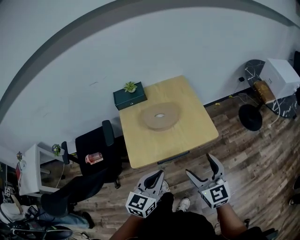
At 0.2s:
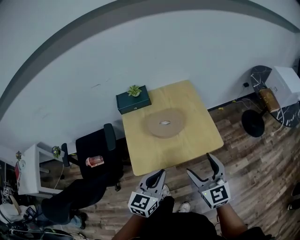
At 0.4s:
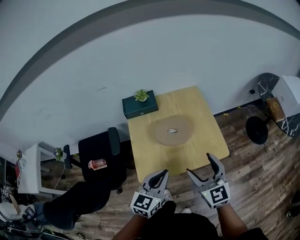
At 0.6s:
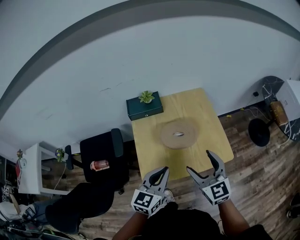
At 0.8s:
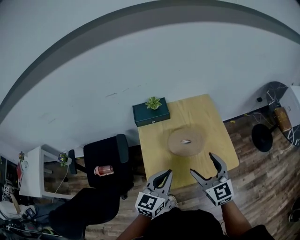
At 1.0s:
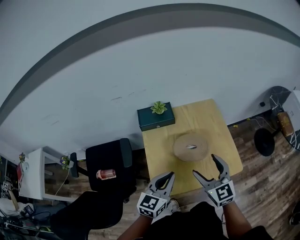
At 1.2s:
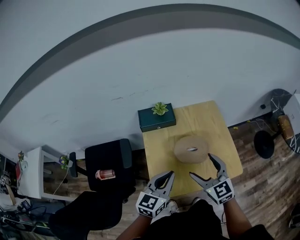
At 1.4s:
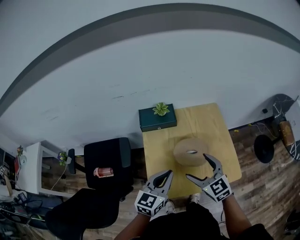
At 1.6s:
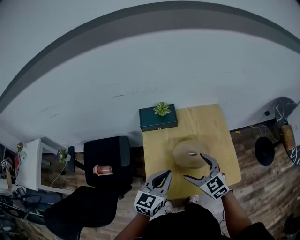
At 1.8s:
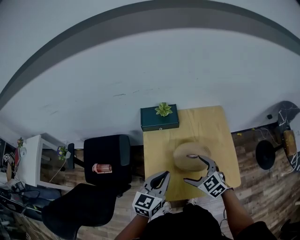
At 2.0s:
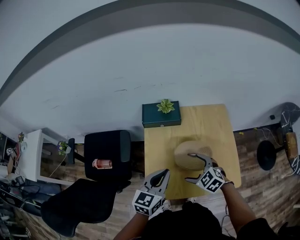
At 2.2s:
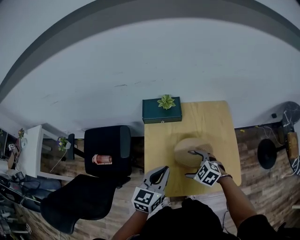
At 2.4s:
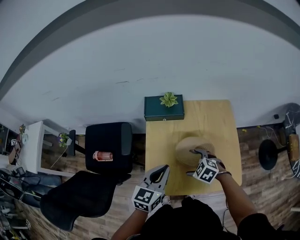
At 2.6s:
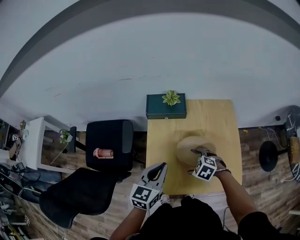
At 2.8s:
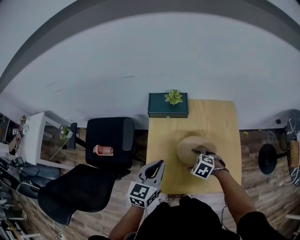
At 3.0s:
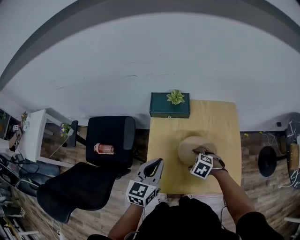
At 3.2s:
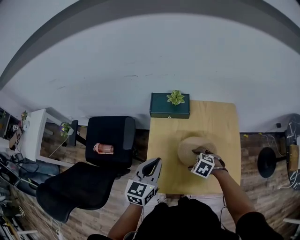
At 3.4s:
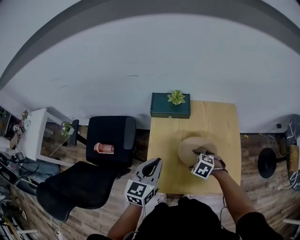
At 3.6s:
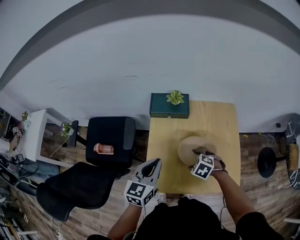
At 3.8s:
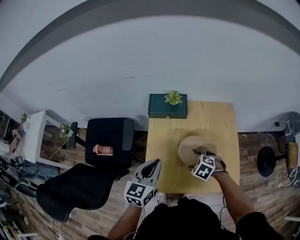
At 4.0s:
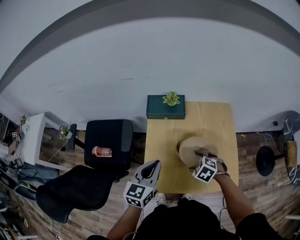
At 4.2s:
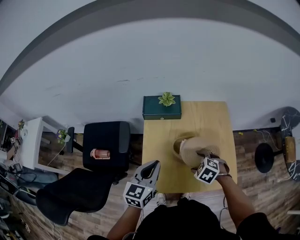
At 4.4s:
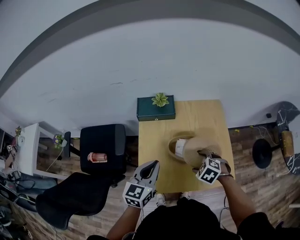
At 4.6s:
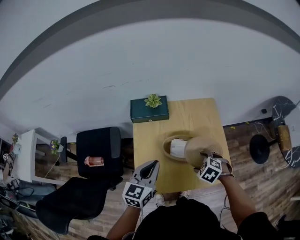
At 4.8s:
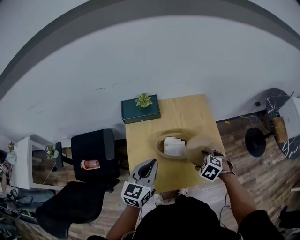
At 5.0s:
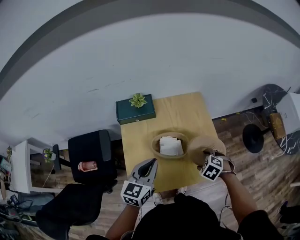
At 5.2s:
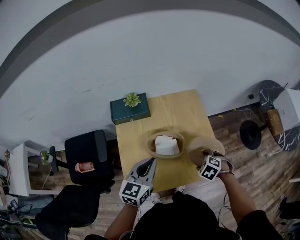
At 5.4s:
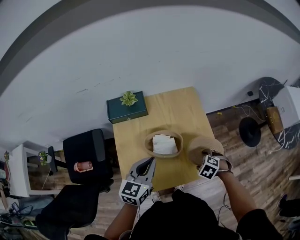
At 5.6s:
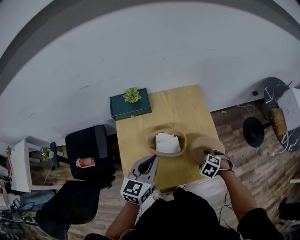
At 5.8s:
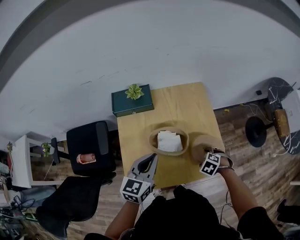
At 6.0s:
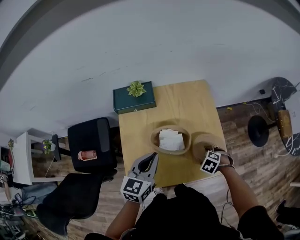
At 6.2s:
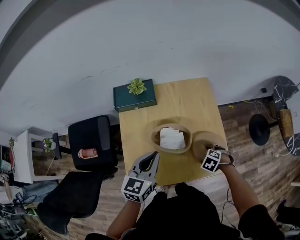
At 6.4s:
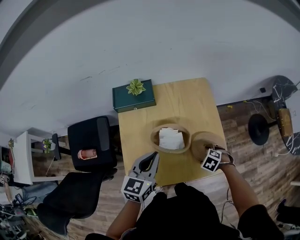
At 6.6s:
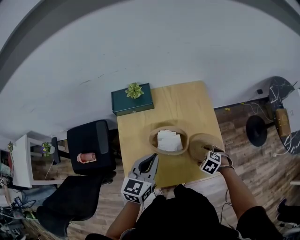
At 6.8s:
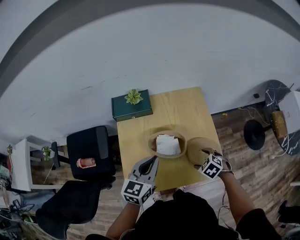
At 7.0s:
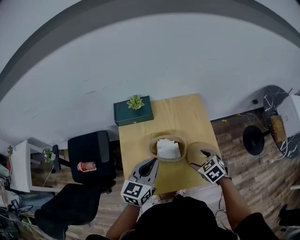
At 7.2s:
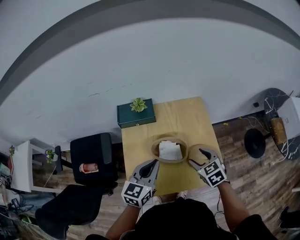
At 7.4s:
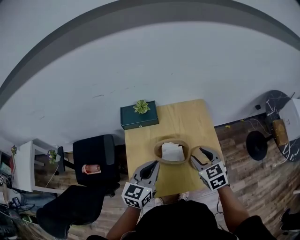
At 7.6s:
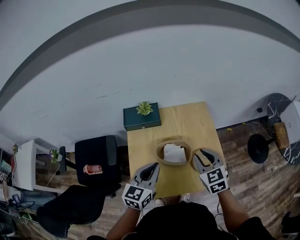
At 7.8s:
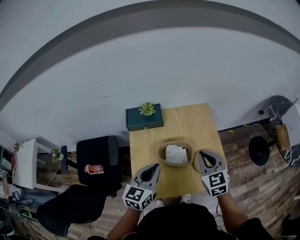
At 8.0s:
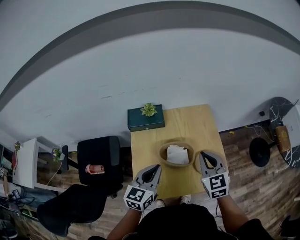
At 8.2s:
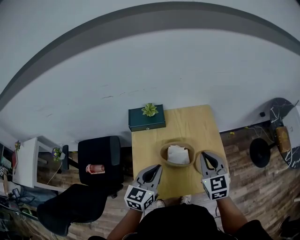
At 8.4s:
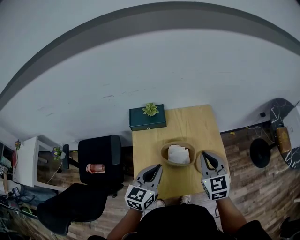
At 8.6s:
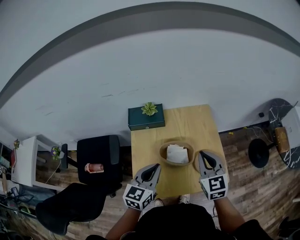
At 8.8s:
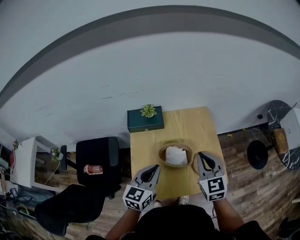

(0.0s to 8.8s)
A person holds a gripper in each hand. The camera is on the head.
0.0s - 1.4s: Both grippers move forward and to the left, some 25 cm. The right gripper turns by roughly 20 degrees.
1.4s - 3.0s: The left gripper ends up some 10 cm from where it was. Meanwhile the right gripper goes about 20 cm downward, and tilts its fingers approximately 50 degrees downward.
3.0s - 4.4s: The right gripper moves to the right, backward and upward, about 10 cm.
4.4s - 5.8s: The left gripper shifts by about 10 cm; the right gripper ends up roughly 15 cm from where it was.
5.8s - 7.4s: The right gripper travels upward by roughly 20 cm, and points its fingers roughly 50 degrees further upward.
7.4s - 8.8s: The right gripper travels upward by roughly 10 cm, changes its angle by approximately 20 degrees, and closes up.

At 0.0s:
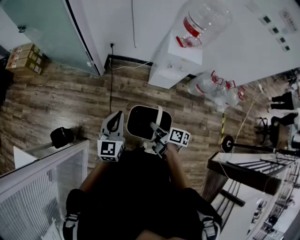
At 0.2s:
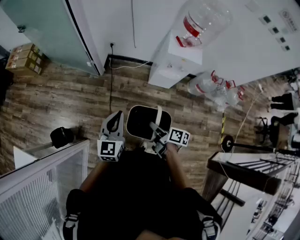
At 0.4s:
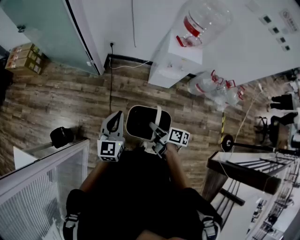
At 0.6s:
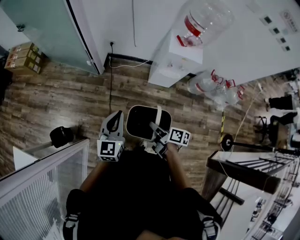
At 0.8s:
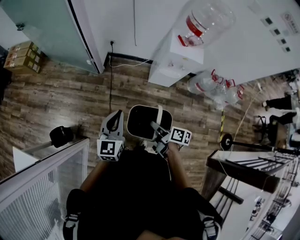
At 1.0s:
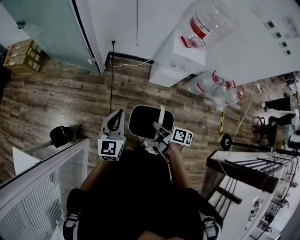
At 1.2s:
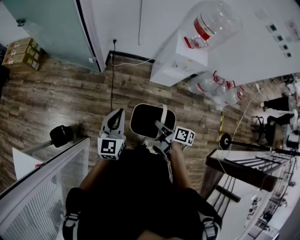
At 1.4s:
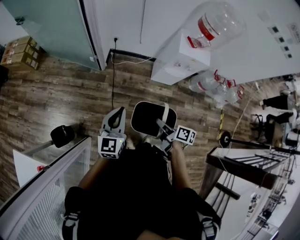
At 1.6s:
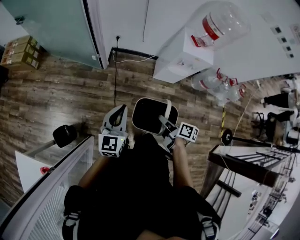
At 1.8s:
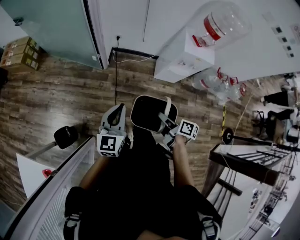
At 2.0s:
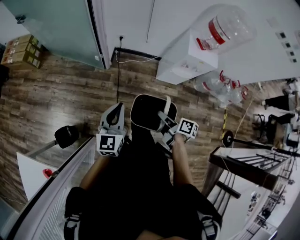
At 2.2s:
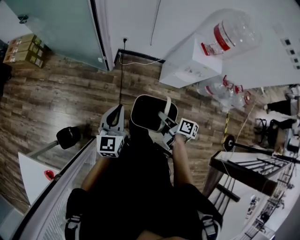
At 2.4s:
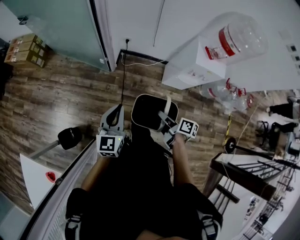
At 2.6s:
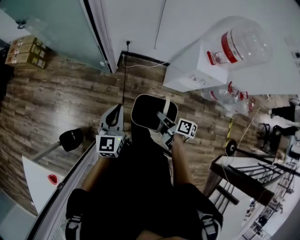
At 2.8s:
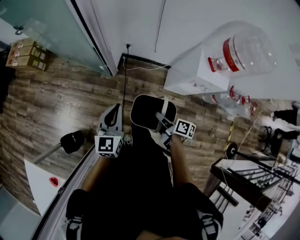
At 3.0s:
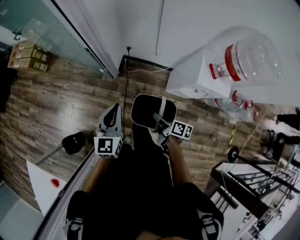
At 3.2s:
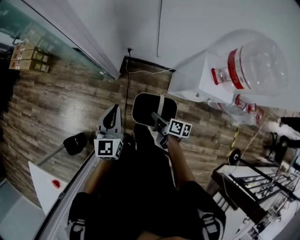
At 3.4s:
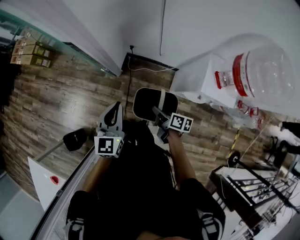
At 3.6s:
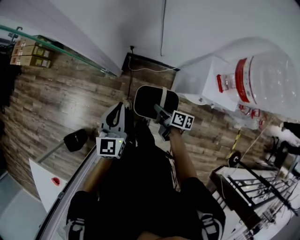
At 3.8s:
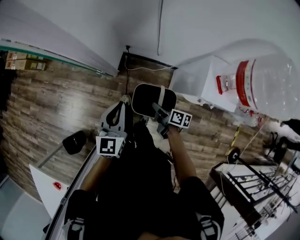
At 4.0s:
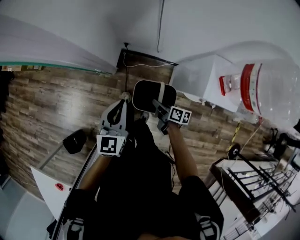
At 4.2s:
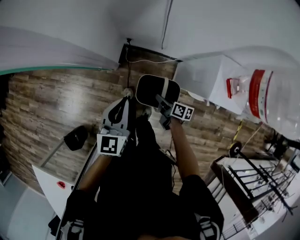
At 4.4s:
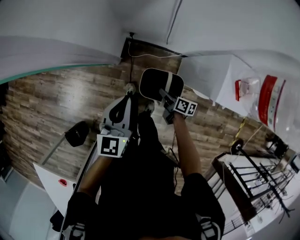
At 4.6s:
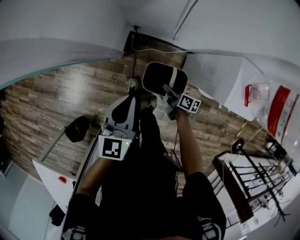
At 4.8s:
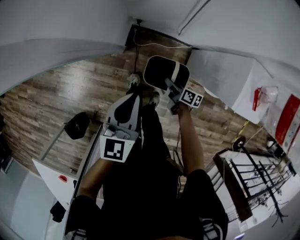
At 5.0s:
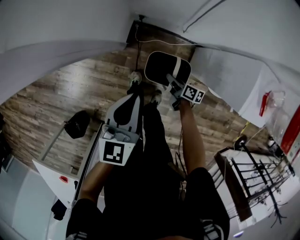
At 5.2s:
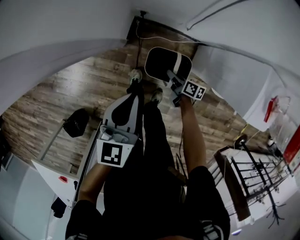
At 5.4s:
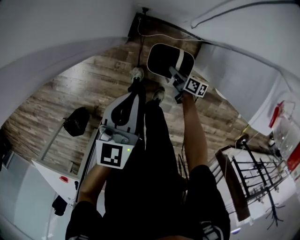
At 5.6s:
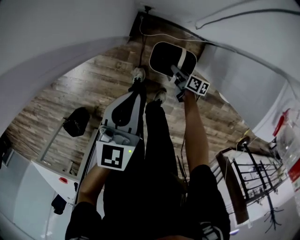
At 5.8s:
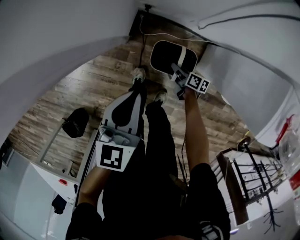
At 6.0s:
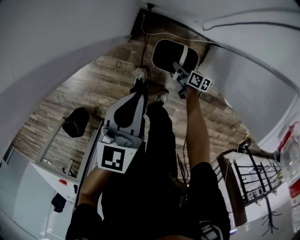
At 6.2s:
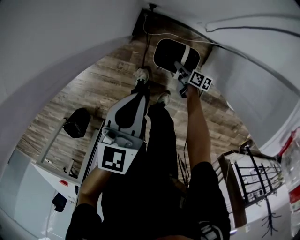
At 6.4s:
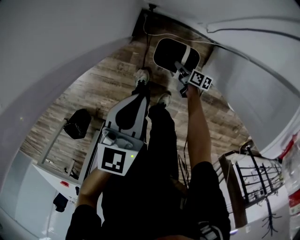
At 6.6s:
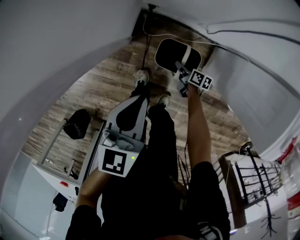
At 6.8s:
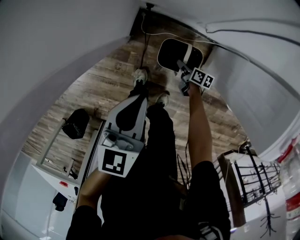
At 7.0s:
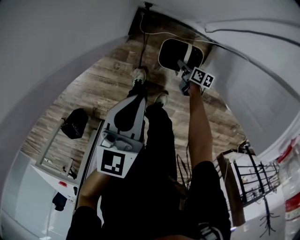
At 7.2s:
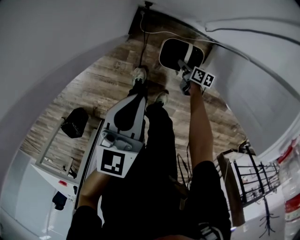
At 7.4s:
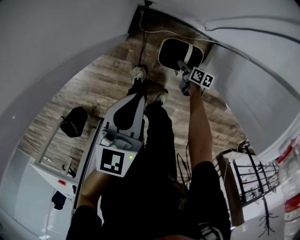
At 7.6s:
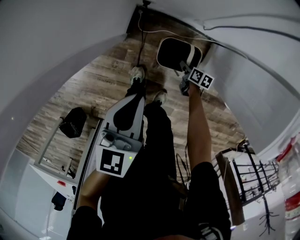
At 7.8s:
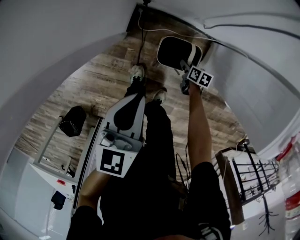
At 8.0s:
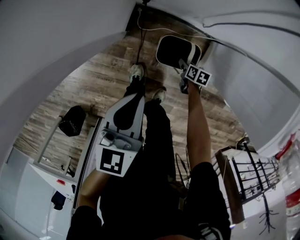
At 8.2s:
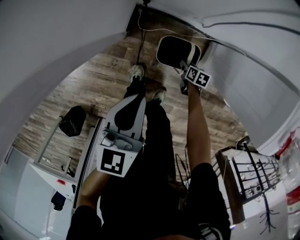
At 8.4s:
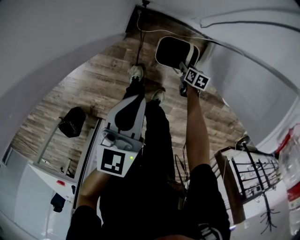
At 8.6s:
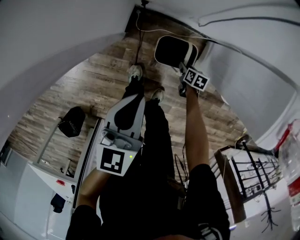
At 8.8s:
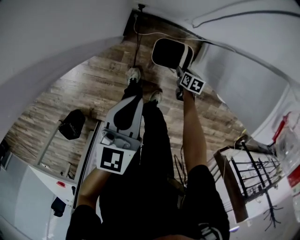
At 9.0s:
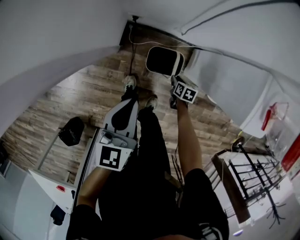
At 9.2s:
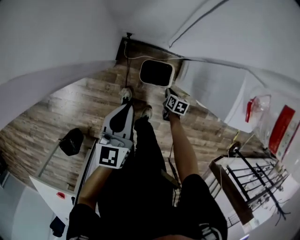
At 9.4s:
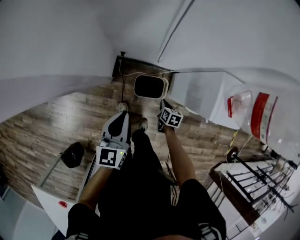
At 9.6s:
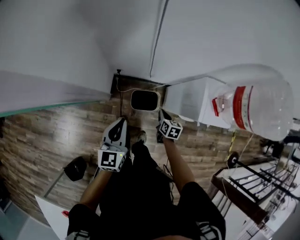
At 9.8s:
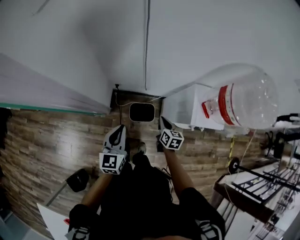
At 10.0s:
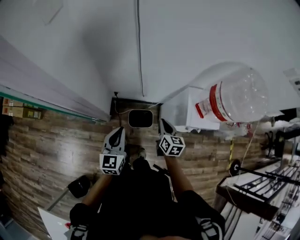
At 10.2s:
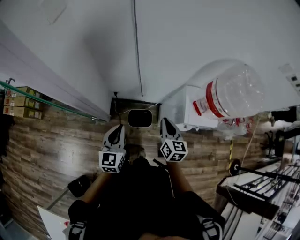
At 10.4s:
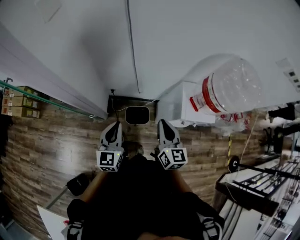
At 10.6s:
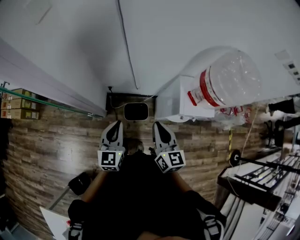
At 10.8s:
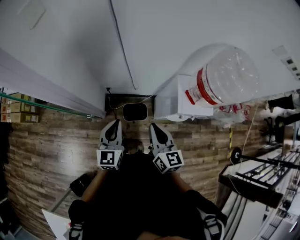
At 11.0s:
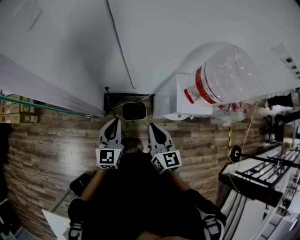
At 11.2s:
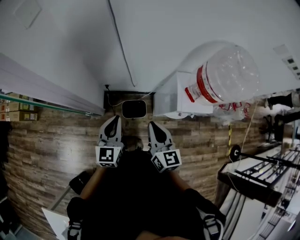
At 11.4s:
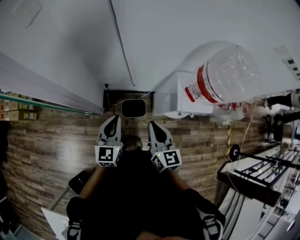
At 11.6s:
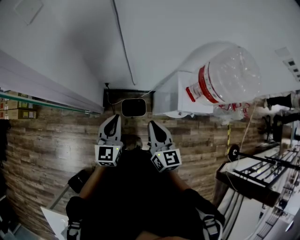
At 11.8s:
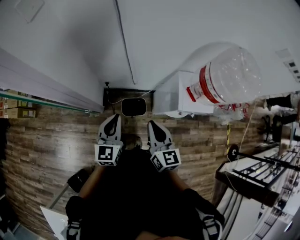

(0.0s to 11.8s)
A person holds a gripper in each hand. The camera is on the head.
0.0s - 1.4s: The right gripper moves to the left, approximately 5 cm; the left gripper moves to the left and forward, approximately 10 cm.
1.4s - 3.0s: The two grippers go roughly 25 cm forward.
3.0s - 4.4s: The right gripper heads downward and forward, covering approximately 25 cm; the left gripper travels forward, downward and to the right by approximately 20 cm.
4.4s - 6.0s: The right gripper moves downward, some 30 cm. Meanwhile the left gripper goes roughly 20 cm downward.
6.0s - 7.4s: The right gripper goes roughly 5 cm downward.
7.4s - 8.8s: The left gripper changes place by approximately 5 cm. Meanwhile the right gripper shifts roughly 5 cm backward, rotates roughly 20 degrees, and opens up.
8.8s - 10.4s: The left gripper shifts approximately 30 cm upward, and changes its angle by approximately 20 degrees; the right gripper moves upward, roughly 70 cm, points its fingers approximately 50 degrees further upward, and closes.
10.4s - 11.8s: The grippers make only small movements.

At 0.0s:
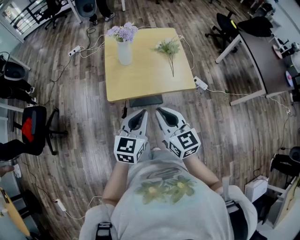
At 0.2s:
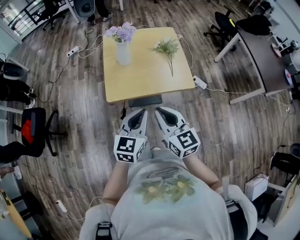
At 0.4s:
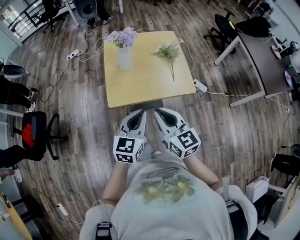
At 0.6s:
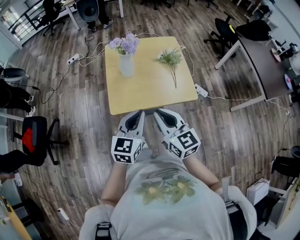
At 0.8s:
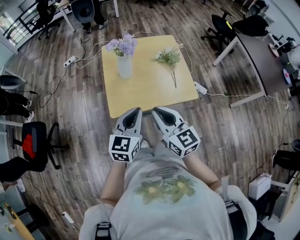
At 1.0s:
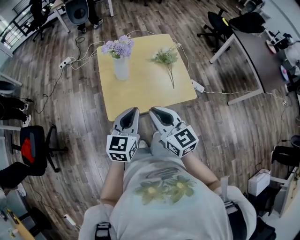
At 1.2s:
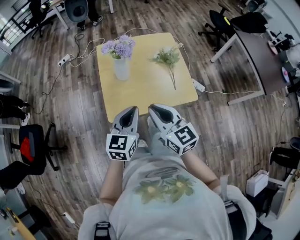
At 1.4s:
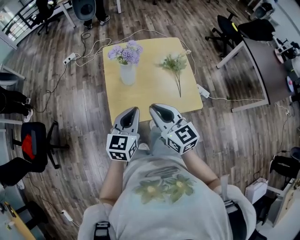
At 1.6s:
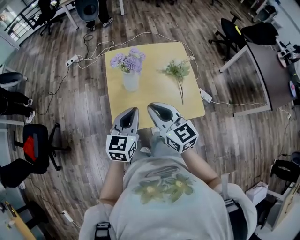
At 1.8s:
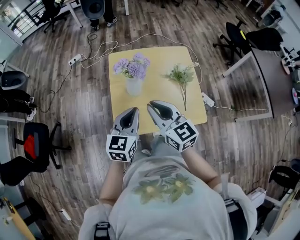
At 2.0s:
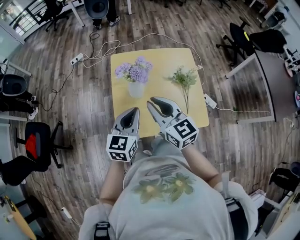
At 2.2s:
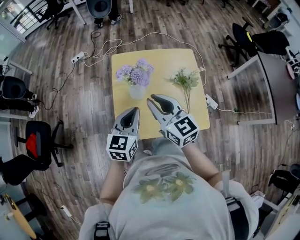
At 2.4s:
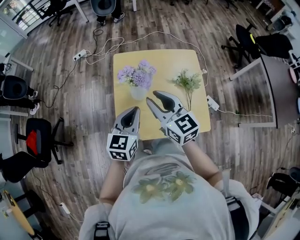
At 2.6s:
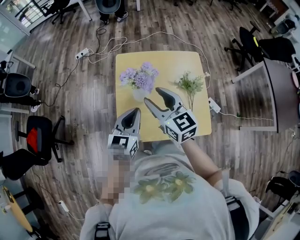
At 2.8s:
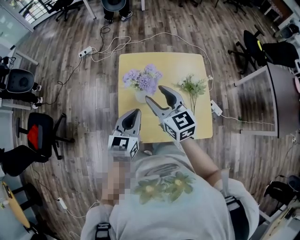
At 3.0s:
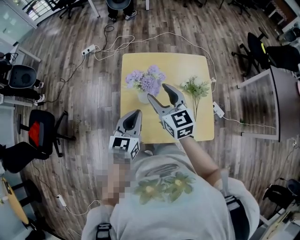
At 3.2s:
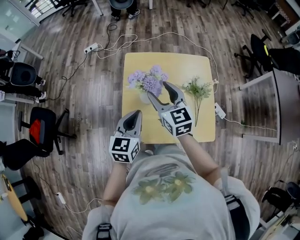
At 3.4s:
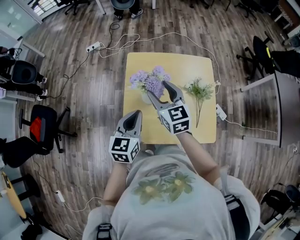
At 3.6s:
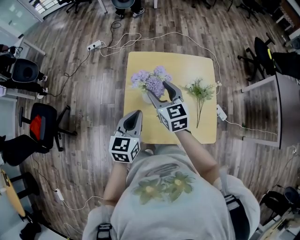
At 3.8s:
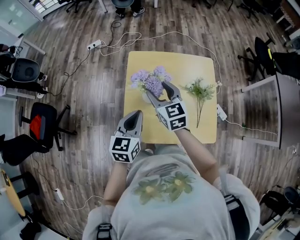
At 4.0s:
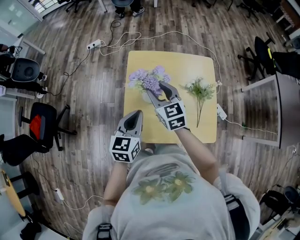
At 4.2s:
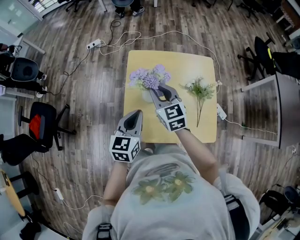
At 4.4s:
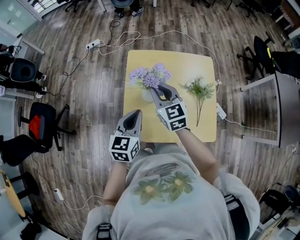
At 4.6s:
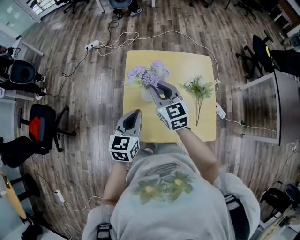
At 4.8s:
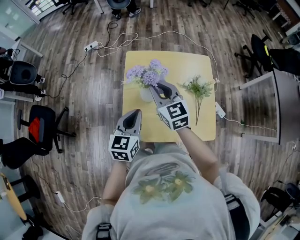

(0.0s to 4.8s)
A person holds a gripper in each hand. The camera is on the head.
0.0s - 1.6s: Both grippers move forward, about 30 cm.
1.6s - 3.2s: The right gripper moves forward, approximately 25 cm, and opens, while the left gripper travels forward by roughly 15 cm.
3.2s - 4.8s: The right gripper closes.
